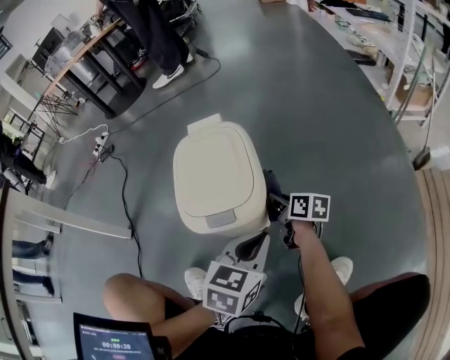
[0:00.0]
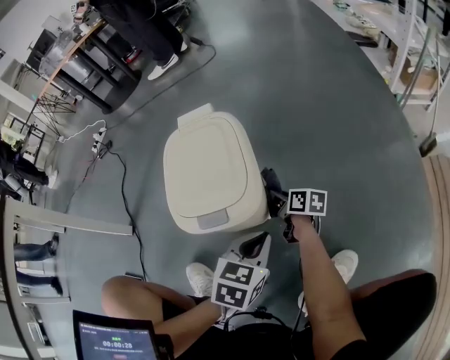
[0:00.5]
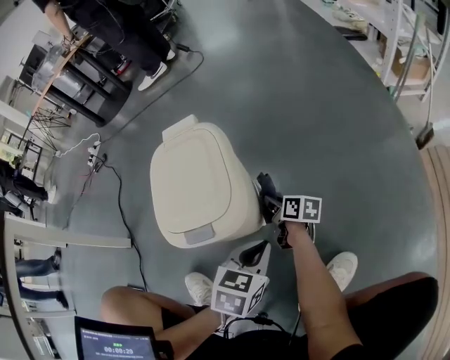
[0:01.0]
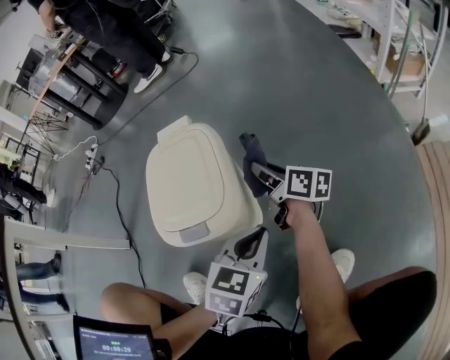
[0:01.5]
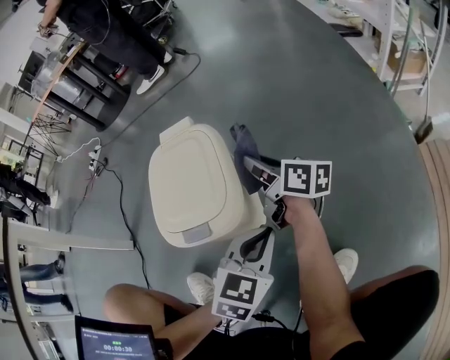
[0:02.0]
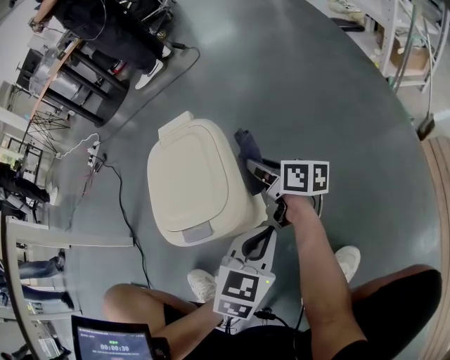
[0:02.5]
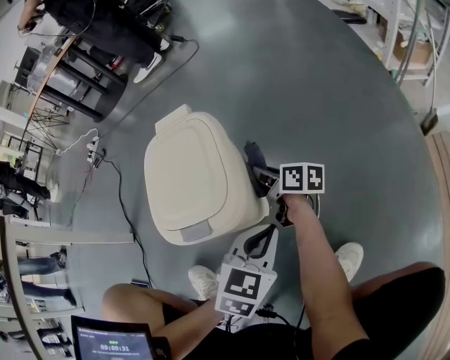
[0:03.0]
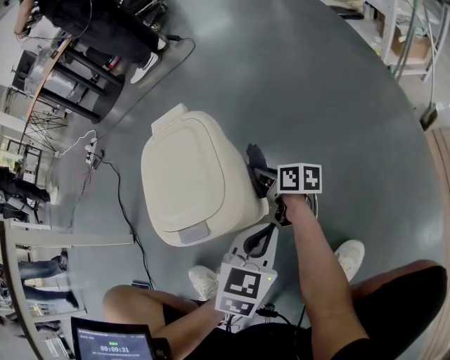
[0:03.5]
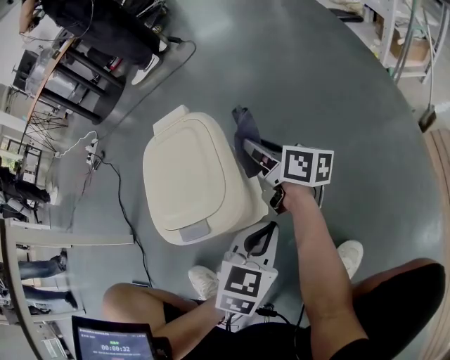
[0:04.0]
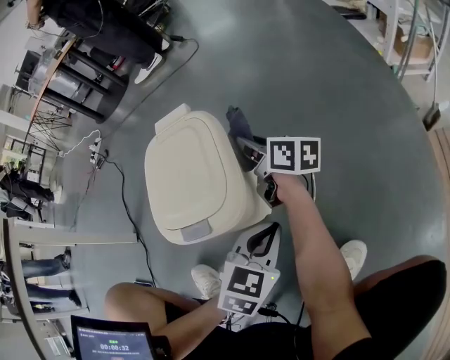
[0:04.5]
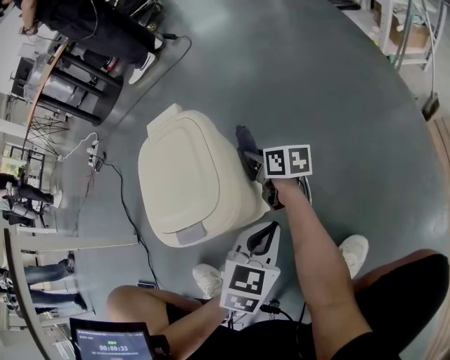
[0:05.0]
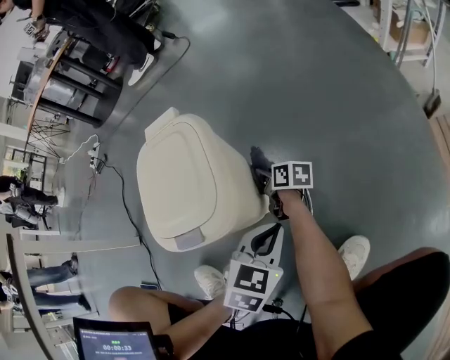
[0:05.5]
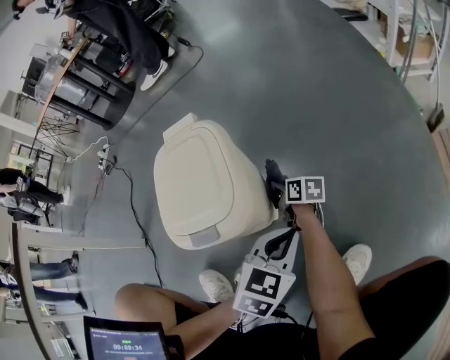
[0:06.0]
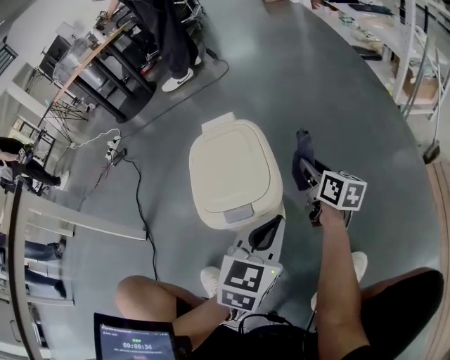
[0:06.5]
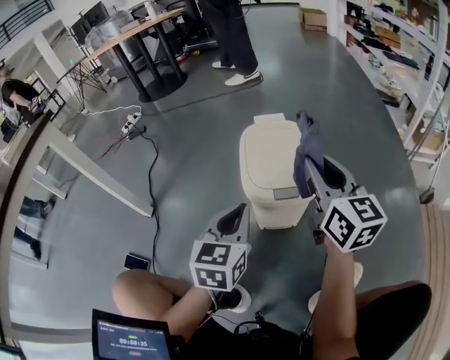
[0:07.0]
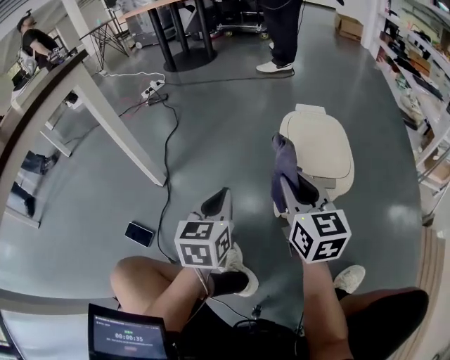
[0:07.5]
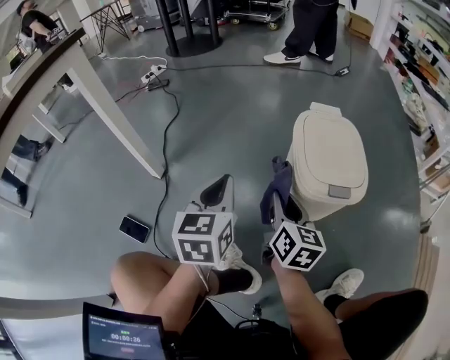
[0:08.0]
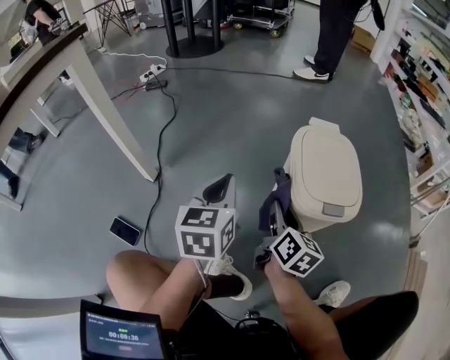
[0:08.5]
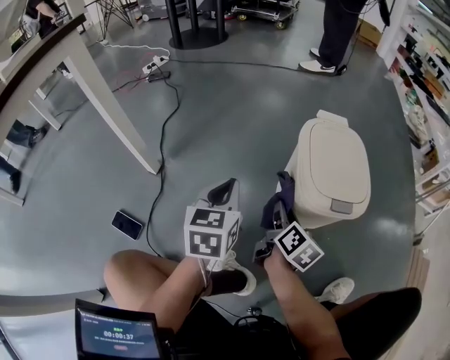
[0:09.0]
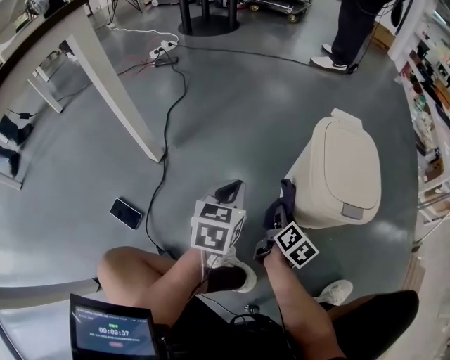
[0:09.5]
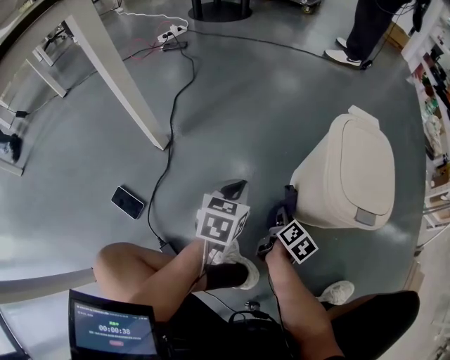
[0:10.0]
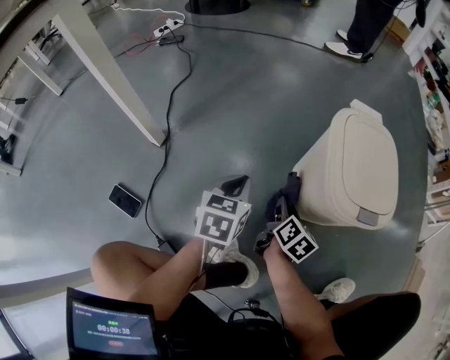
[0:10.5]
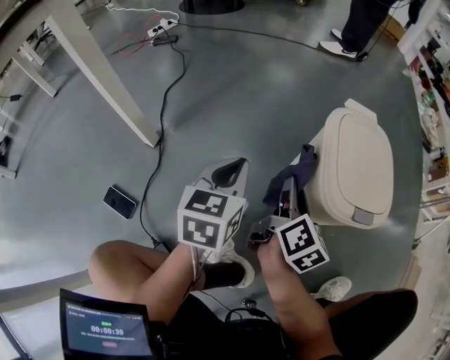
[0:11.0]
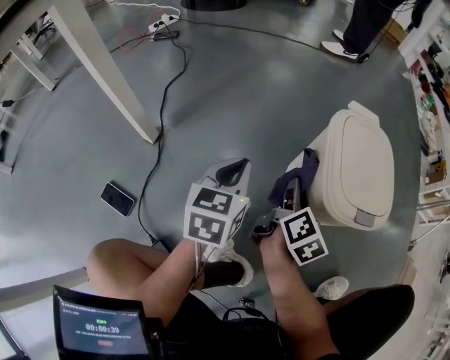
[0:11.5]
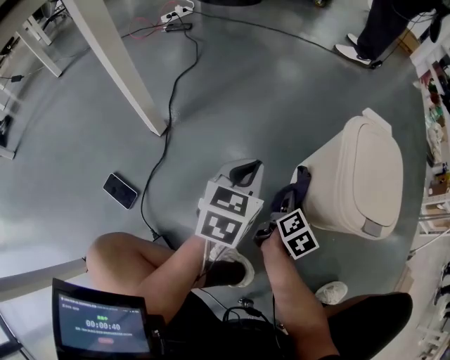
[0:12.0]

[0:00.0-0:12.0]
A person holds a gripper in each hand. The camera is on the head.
0:00.0 to 0:02.0: The right gripper moves upward and forward, about 15 cm, and rotates about 20 degrees; the left gripper goes downward and returns, about 10 cm each way.
0:02.0 to 0:04.0: The right gripper goes downward and returns, some 15 cm each way.
0:04.0 to 0:06.0: The right gripper is displaced downward by about 20 cm, and rotates approximately 30 degrees.
0:06.0 to 0:08.0: The left gripper shifts about 40 cm to the left, and rotates approximately 50 degrees; the right gripper moves to the left, upward and backward, approximately 40 cm, and swivels roughly 40 degrees.
0:08.0 to 0:10.0: Both grippers travel together downward, some 20 cm. The right gripper changes its angle by approximately 30 degrees.
0:10.0 to 0:12.0: The left gripper heads upward, covering about 5 cm, while the right gripper goes upward and returns, about 20 cm each way.

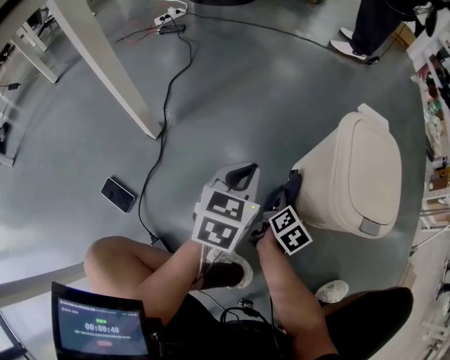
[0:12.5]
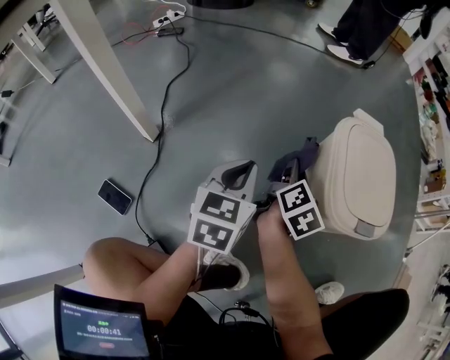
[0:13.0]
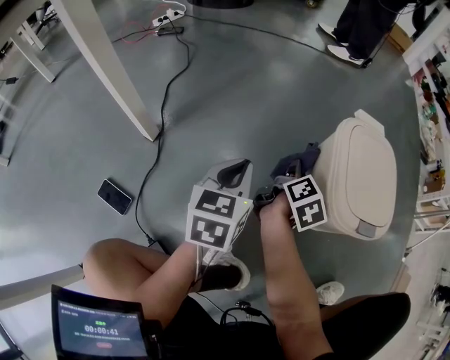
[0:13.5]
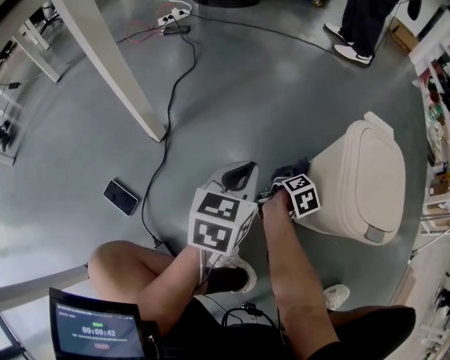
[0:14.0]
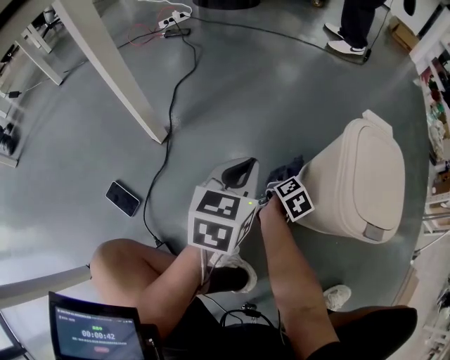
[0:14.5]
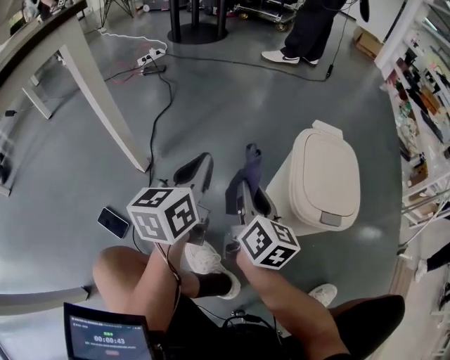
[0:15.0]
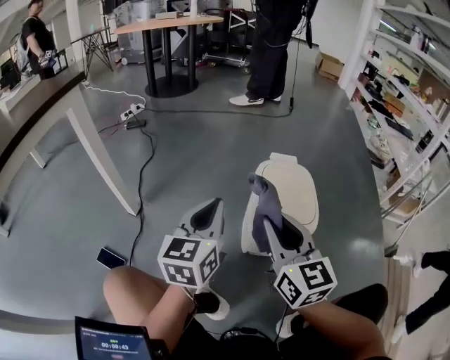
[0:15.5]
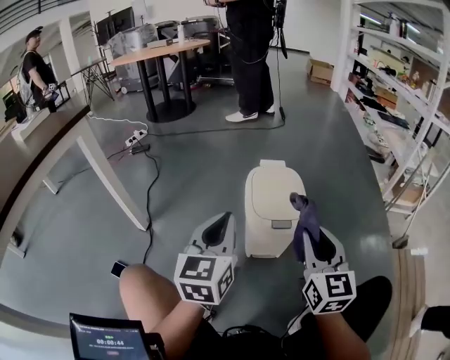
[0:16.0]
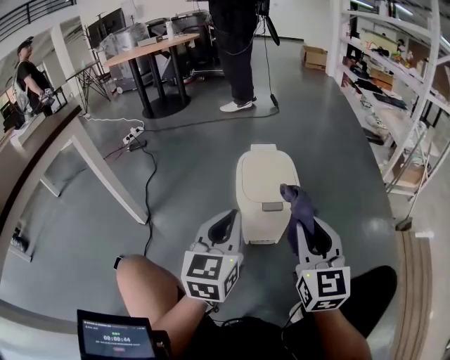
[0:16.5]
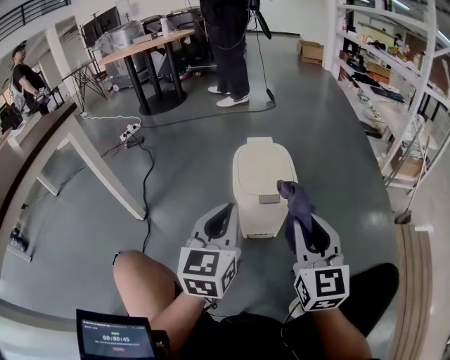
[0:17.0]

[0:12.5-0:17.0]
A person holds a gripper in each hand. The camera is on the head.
0:12.5 to 0:14.5: The right gripper is displaced forward by about 10 cm, and goes upward and returns, approximately 15 cm each way.
0:14.5 to 0:17.0: The right gripper is displaced upward, backward and to the right by approximately 50 cm, and tilts its fingers about 40 degrees upward, while the left gripper goes some 35 cm to the right, upward and backward, and swivels approximately 30 degrees.

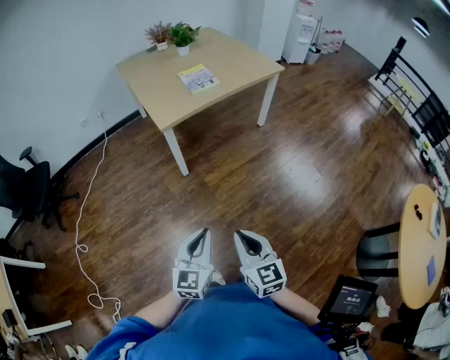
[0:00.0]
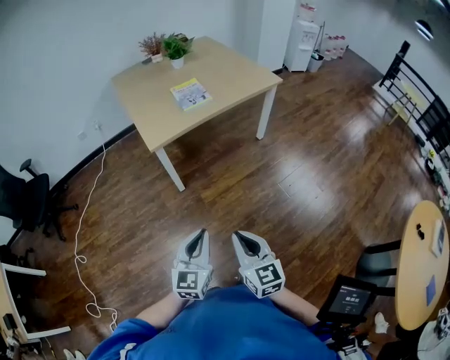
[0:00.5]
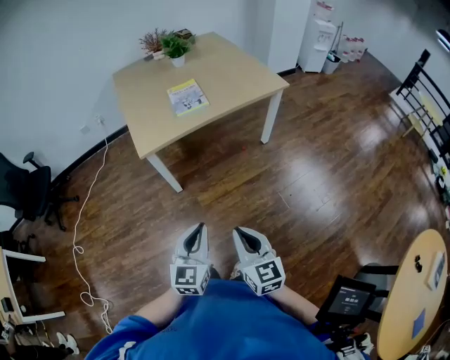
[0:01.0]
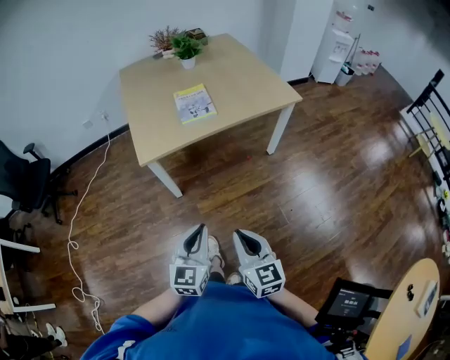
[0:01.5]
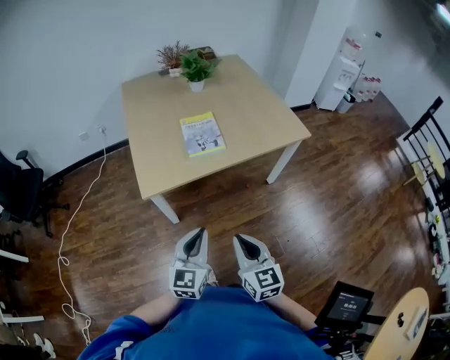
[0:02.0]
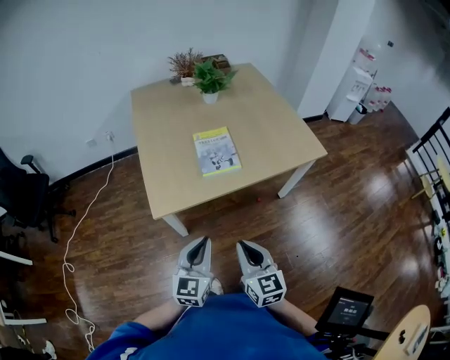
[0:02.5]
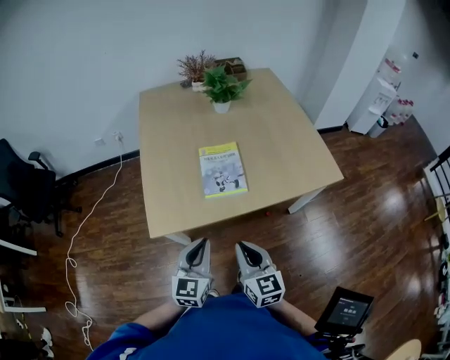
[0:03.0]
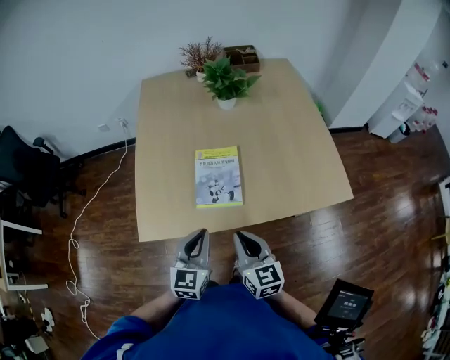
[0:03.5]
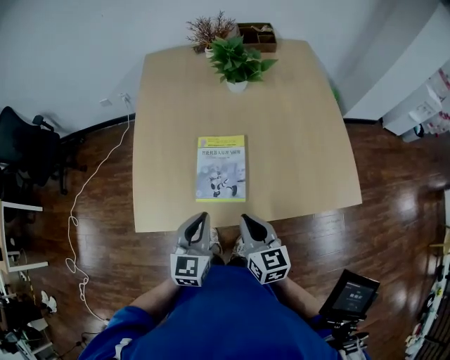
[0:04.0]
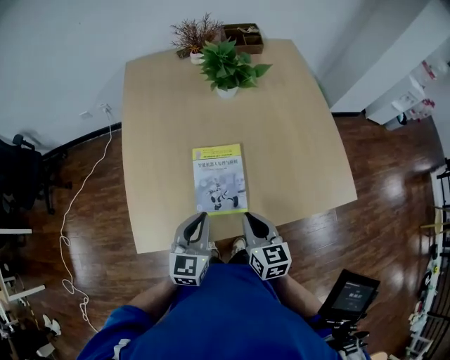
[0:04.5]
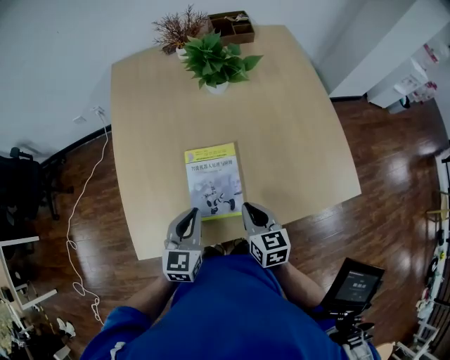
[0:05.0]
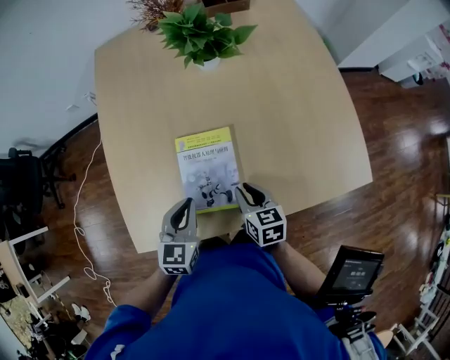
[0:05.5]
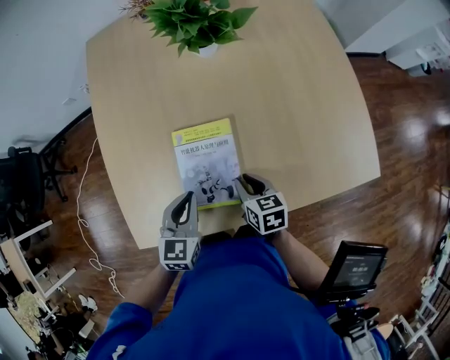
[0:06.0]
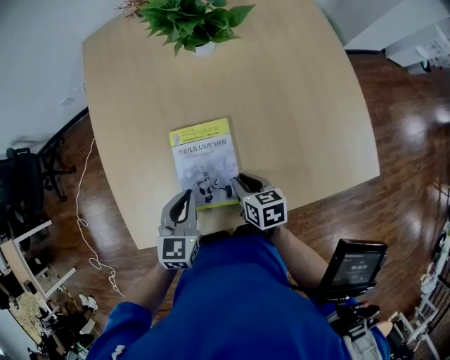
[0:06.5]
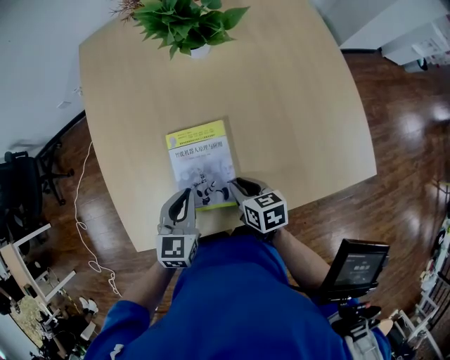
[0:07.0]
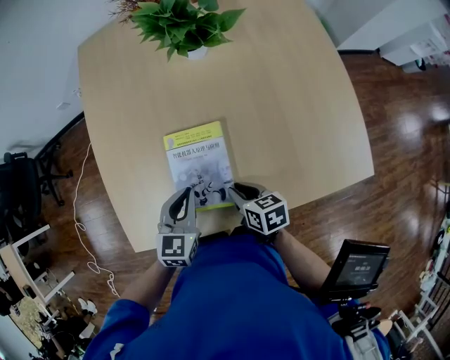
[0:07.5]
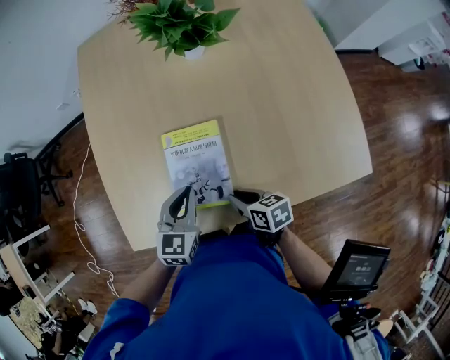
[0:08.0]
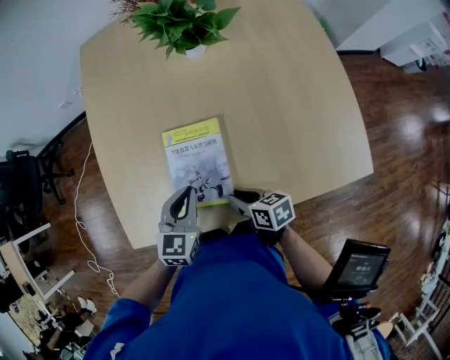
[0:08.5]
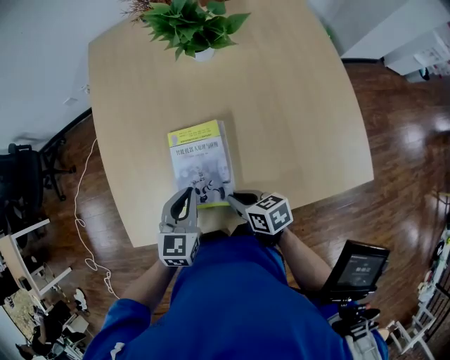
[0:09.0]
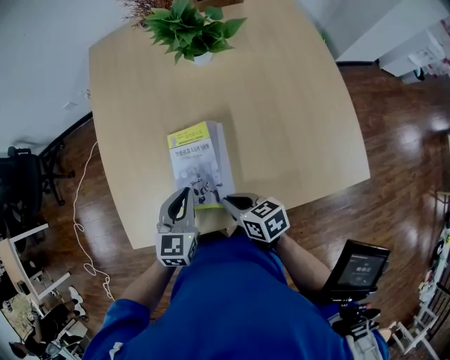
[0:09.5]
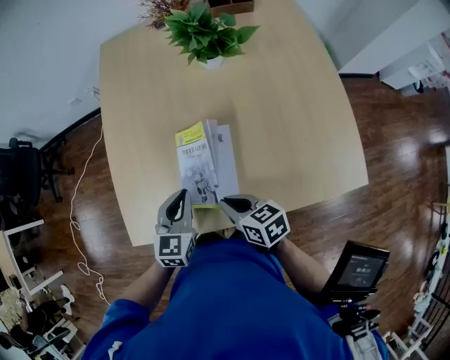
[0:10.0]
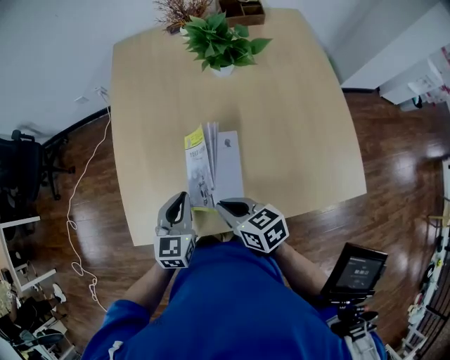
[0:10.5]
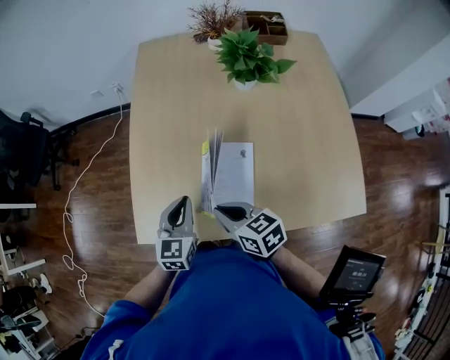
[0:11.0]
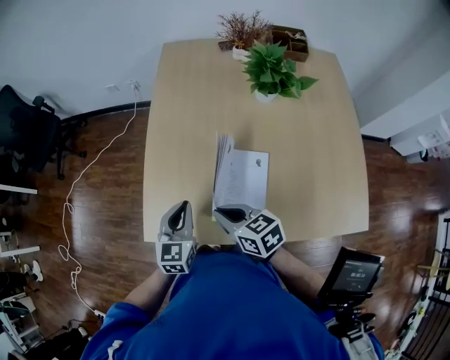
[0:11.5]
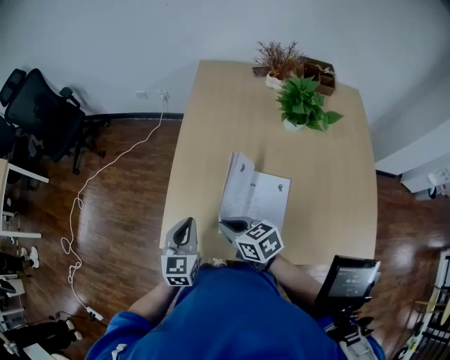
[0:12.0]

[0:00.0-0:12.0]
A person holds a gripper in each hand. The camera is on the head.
0:00.0 to 0:02.0: The two grippers travel together, forward, some 40 cm.
0:02.0 to 0:04.0: The two grippers go some 40 cm forward. The right gripper turns by approximately 20 degrees; the left gripper turns by roughly 20 degrees.
0:04.0 to 0:06.0: The left gripper goes roughly 15 cm forward and downward. The right gripper travels downward and forward by approximately 20 cm, and turns by roughly 30 degrees.
0:06.0 to 0:08.0: The right gripper ends up some 5 cm from where it was, and changes its angle by some 20 degrees.
0:08.0 to 0:10.0: The right gripper moves upward, some 10 cm, while the left gripper changes place by approximately 5 cm.
0:10.0 to 0:12.0: The left gripper heads to the left, covering roughly 20 cm, and swivels approximately 20 degrees, while the right gripper travels to the left and forward by approximately 20 cm, and swivels some 20 degrees.
